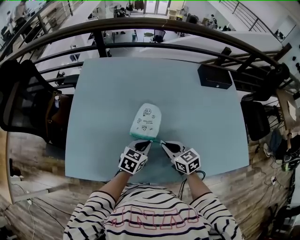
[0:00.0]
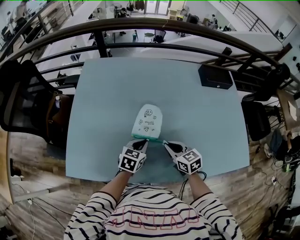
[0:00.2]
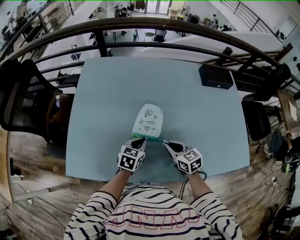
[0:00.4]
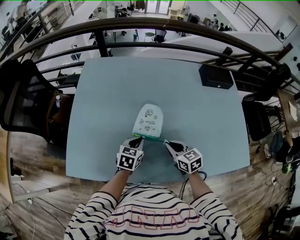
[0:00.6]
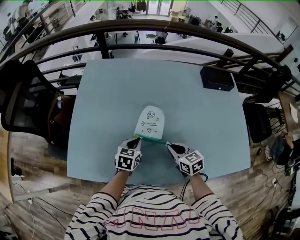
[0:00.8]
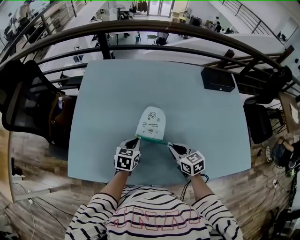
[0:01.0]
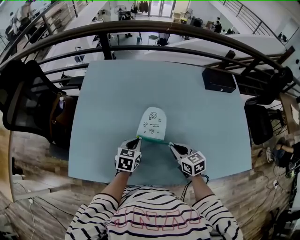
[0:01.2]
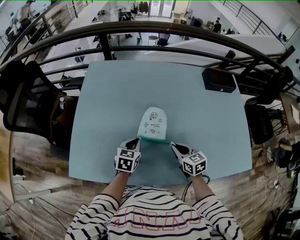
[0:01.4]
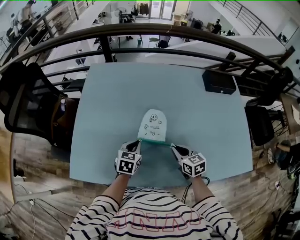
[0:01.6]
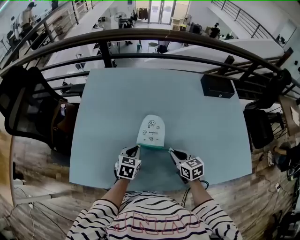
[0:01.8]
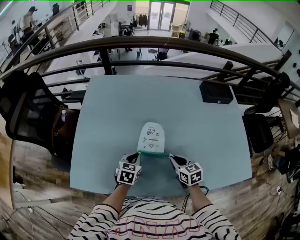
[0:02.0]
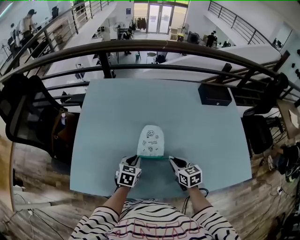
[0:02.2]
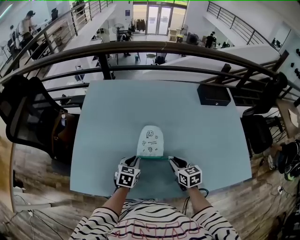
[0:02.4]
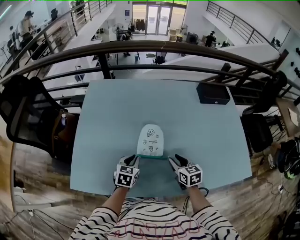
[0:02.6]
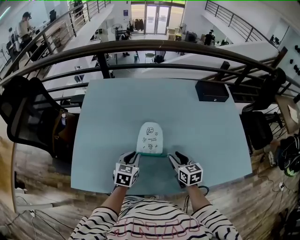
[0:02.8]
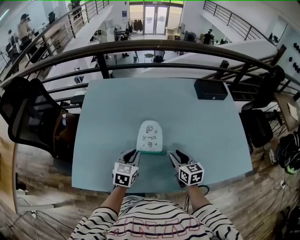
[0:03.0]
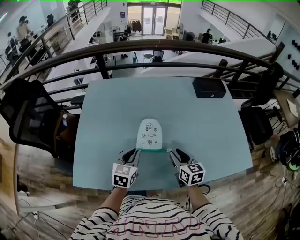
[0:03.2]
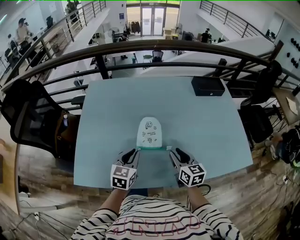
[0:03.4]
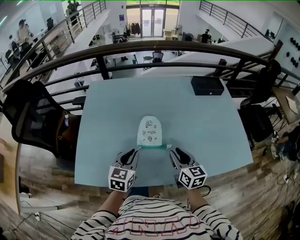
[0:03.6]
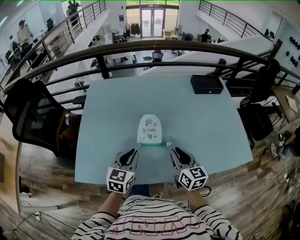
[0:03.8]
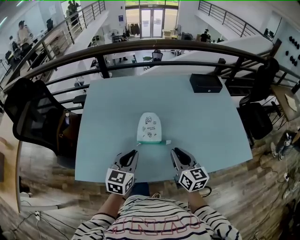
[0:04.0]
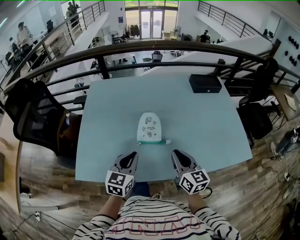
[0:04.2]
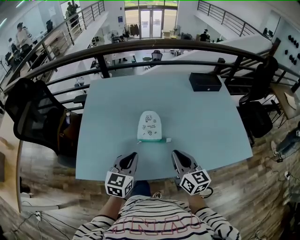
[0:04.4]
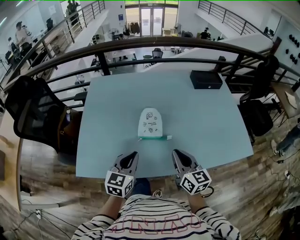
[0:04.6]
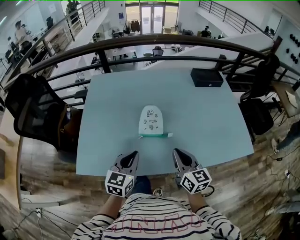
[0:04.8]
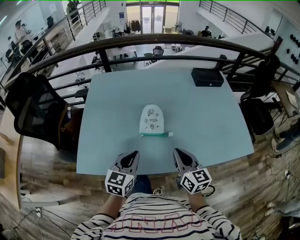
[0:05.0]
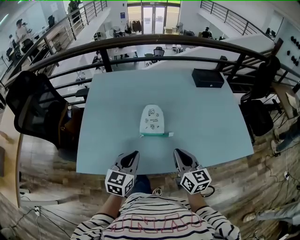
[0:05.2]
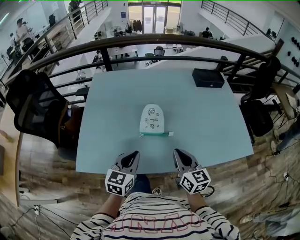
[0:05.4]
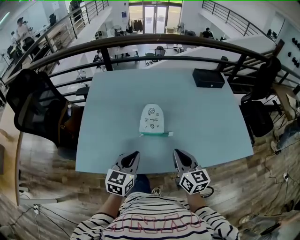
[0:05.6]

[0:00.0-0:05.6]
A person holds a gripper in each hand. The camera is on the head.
0:00.0 to 0:01.4: The left gripper heads to the left, covering approximately 10 cm.
0:01.4 to 0:02.8: The right gripper opens its fingers.
0:02.8 to 0:04.2: Both grippers move upward and backward, some 15 cm. The right gripper rotates some 20 degrees, and closes.
0:04.2 to 0:05.6: The grippers make only small movements.

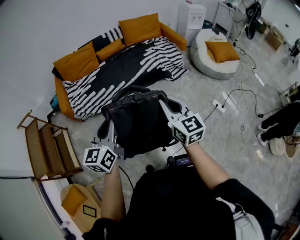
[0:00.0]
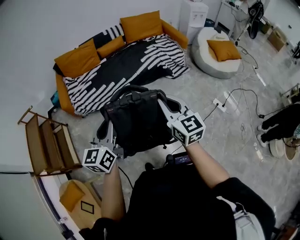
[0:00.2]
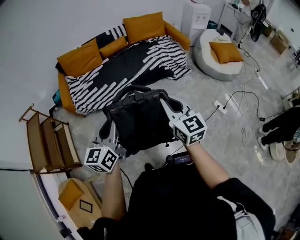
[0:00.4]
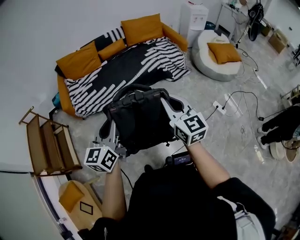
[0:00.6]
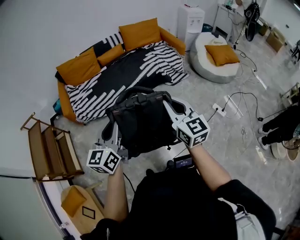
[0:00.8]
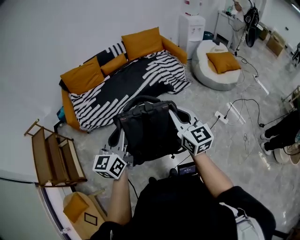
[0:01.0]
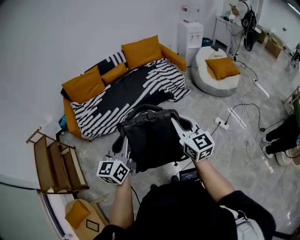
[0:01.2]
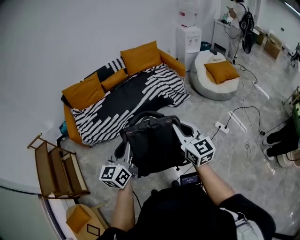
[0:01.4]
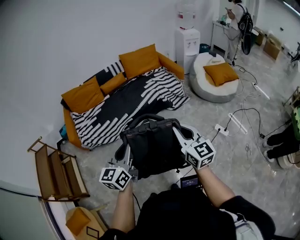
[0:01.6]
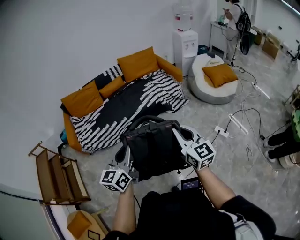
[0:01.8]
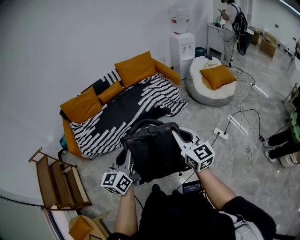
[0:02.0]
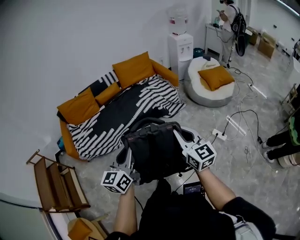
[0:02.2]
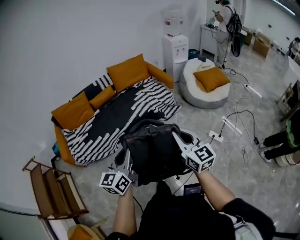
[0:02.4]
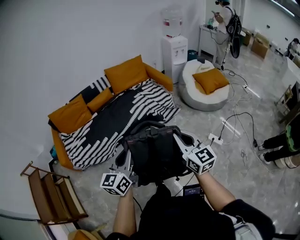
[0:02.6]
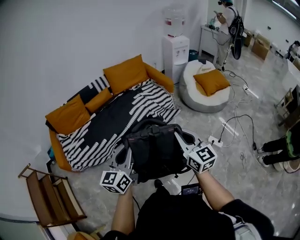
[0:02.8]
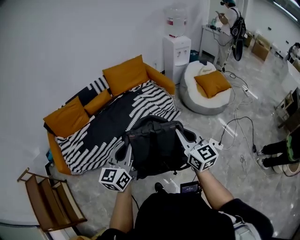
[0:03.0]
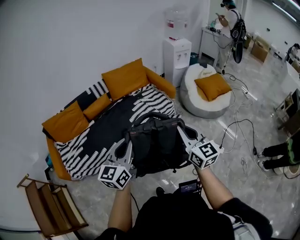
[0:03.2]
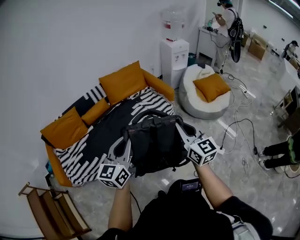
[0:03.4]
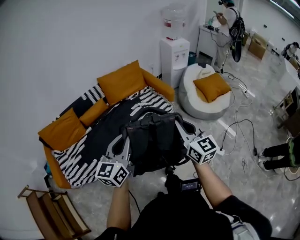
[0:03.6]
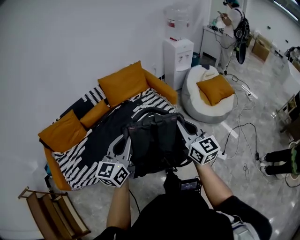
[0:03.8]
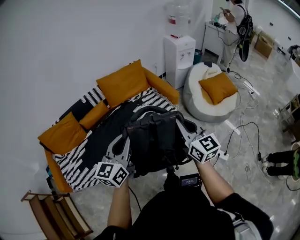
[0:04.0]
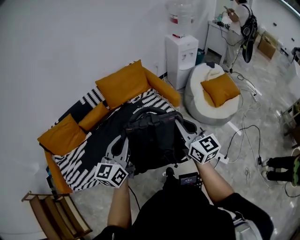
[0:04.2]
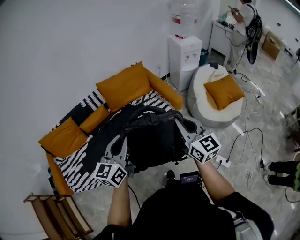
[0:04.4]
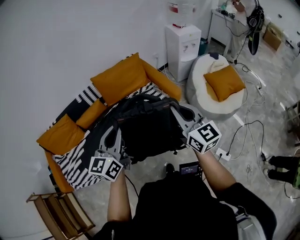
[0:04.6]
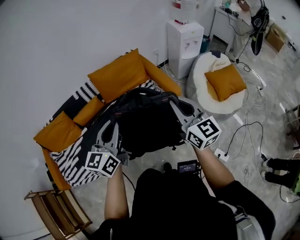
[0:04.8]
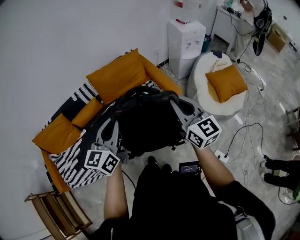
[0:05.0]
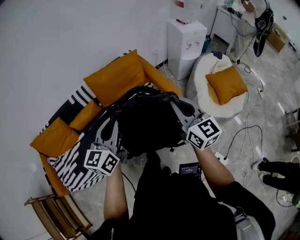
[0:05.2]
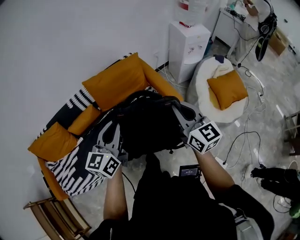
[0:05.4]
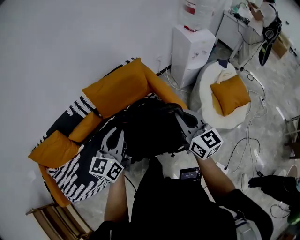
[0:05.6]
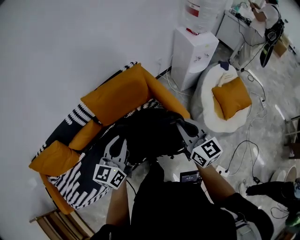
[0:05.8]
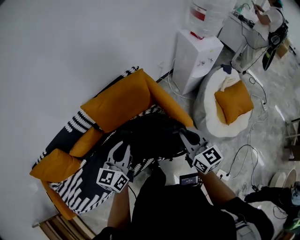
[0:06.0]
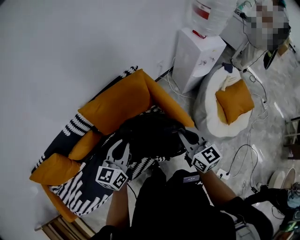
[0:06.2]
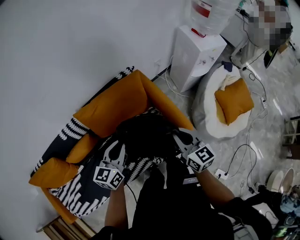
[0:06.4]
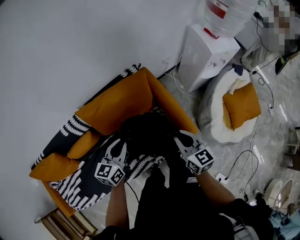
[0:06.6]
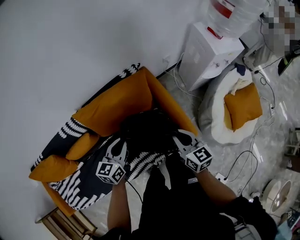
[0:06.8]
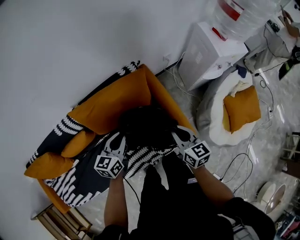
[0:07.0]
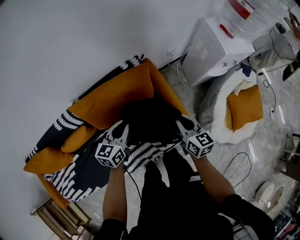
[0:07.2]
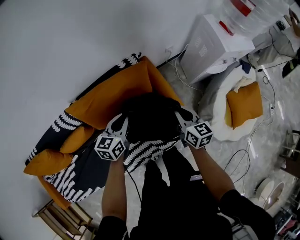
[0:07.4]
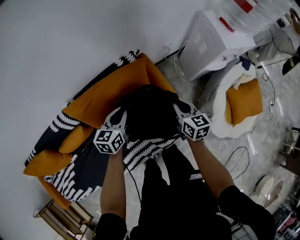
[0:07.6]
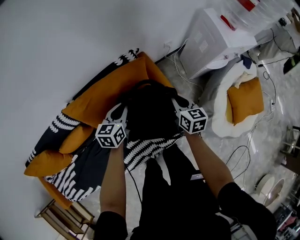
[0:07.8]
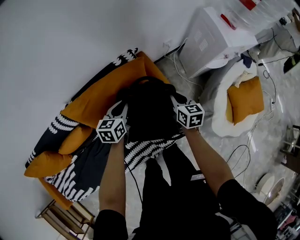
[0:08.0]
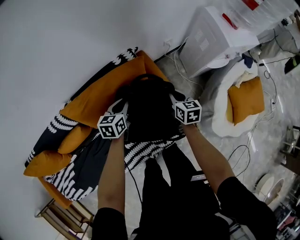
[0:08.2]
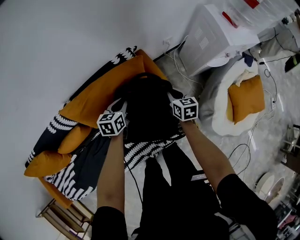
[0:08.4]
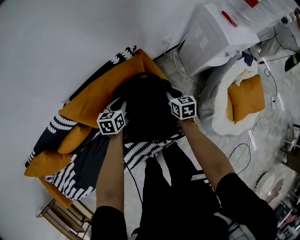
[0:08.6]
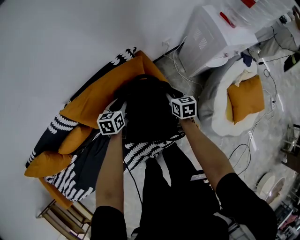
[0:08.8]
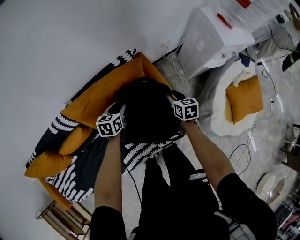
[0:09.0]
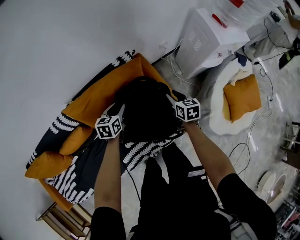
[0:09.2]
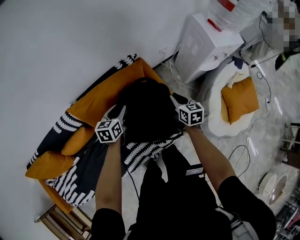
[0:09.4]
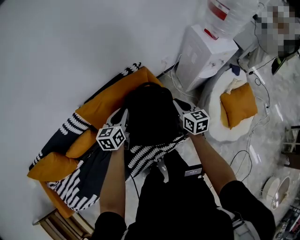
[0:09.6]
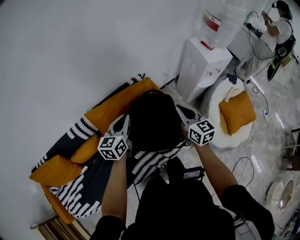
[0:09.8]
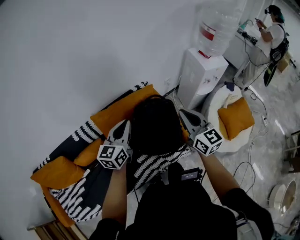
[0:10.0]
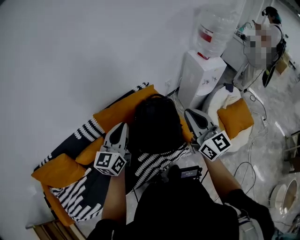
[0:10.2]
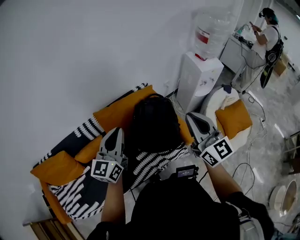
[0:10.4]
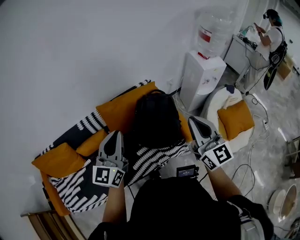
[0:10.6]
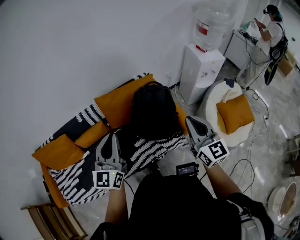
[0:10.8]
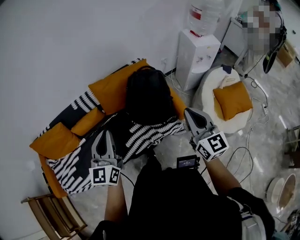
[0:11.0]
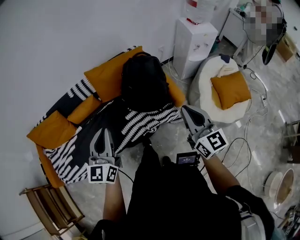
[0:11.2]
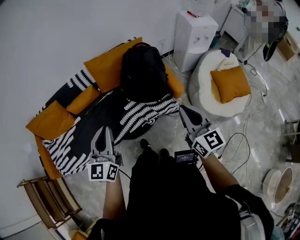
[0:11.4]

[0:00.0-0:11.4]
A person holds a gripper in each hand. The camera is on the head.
0:00.0 to 0:01.4: Both grippers move to the right, some 10 cm.
0:01.4 to 0:02.8: The two grippers go about 20 cm forward and to the right.
0:02.8 to 0:04.2: Both grippers travel together forward, approximately 35 cm.
0:04.2 to 0:05.6: The grippers both shift forward by approximately 30 cm.
0:05.6 to 0:07.2: The two grippers go roughly 35 cm forward and downward. The right gripper turns by some 20 degrees.
0:07.2 to 0:08.6: The grippers both shift downward and forward by about 20 cm.
0:08.6 to 0:10.0: Both grippers travel together upward and backward, roughly 40 cm. The right gripper tilts its fingers roughly 40 degrees upward, and opens and closes again, while the left gripper angles its fingers upward, by roughly 30 degrees.
0:10.0 to 0:11.4: Both grippers move backward, roughly 35 cm. The left gripper changes its angle by about 20 degrees.

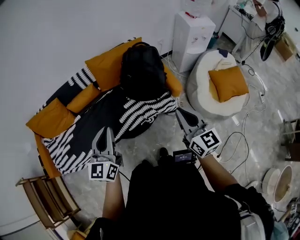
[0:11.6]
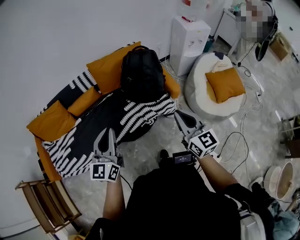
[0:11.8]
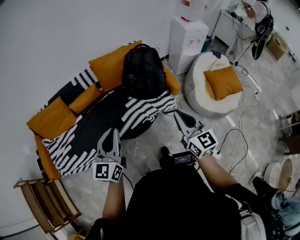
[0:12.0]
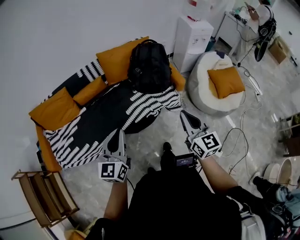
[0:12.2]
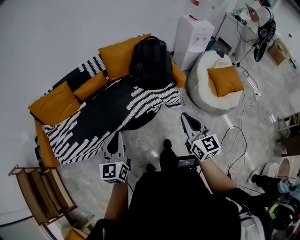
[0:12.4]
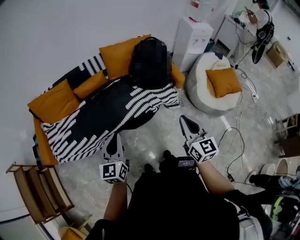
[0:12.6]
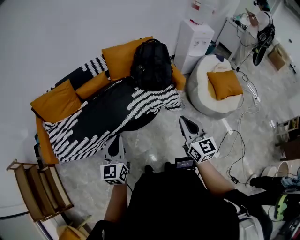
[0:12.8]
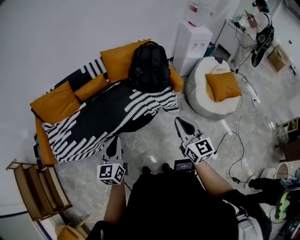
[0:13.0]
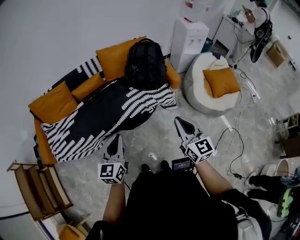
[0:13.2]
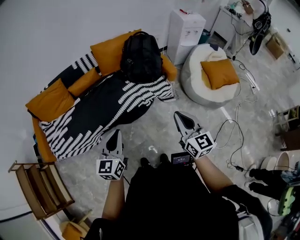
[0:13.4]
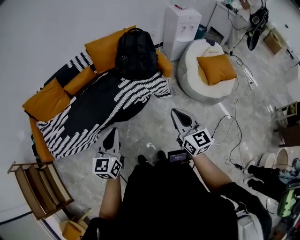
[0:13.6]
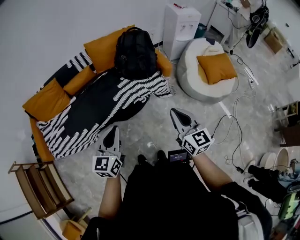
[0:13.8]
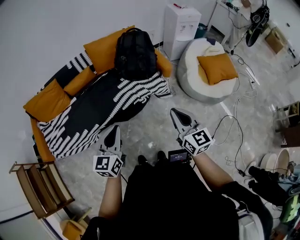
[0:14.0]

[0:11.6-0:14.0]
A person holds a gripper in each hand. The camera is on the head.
0:11.6 to 0:12.8: The grippers both shift backward and to the left by approximately 20 cm.
0:12.8 to 0:14.0: The left gripper shifts roughly 10 cm to the right, while the right gripper is displaced to the right by some 10 cm.

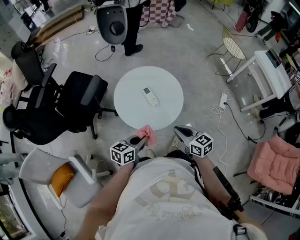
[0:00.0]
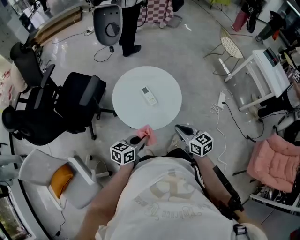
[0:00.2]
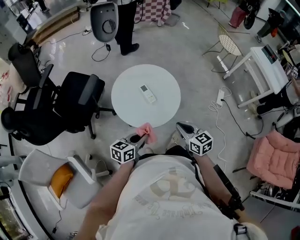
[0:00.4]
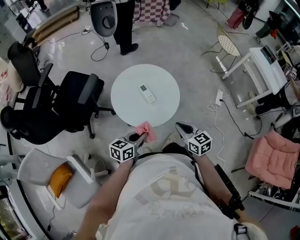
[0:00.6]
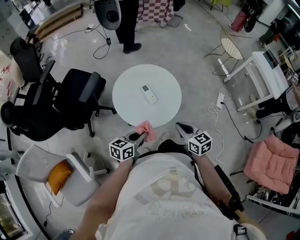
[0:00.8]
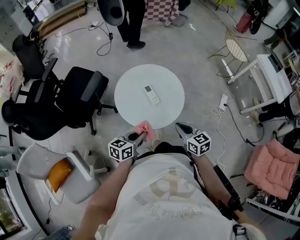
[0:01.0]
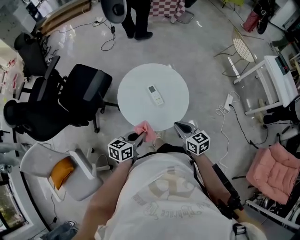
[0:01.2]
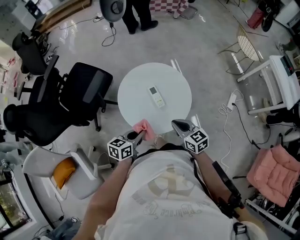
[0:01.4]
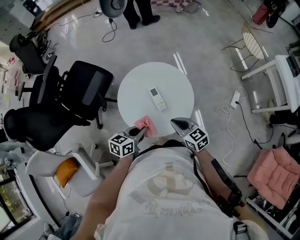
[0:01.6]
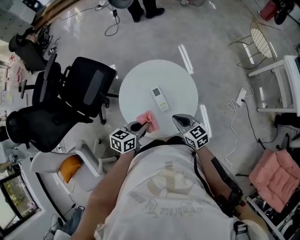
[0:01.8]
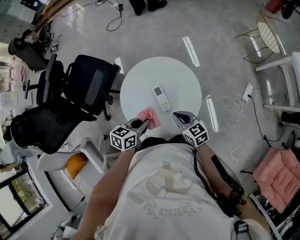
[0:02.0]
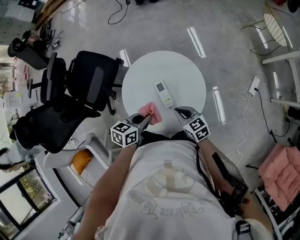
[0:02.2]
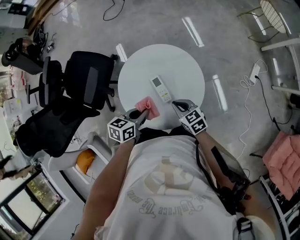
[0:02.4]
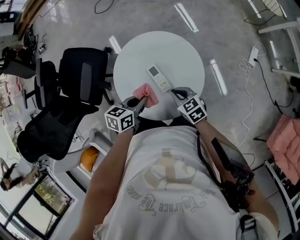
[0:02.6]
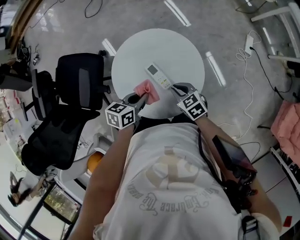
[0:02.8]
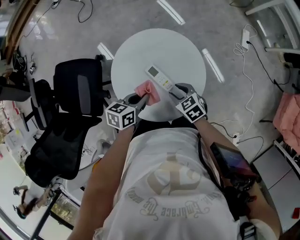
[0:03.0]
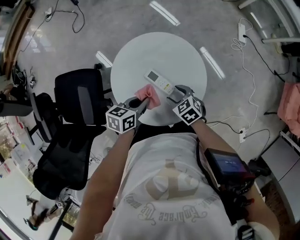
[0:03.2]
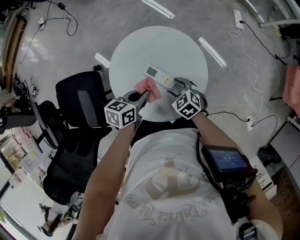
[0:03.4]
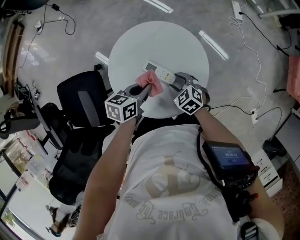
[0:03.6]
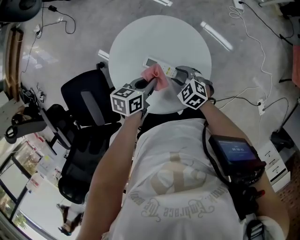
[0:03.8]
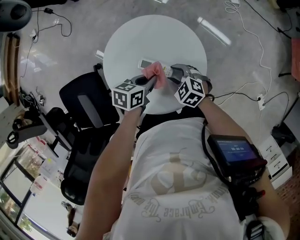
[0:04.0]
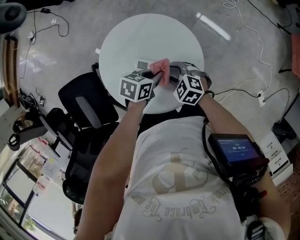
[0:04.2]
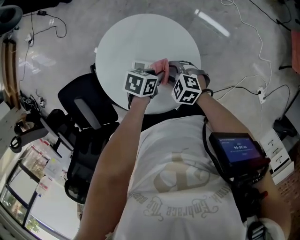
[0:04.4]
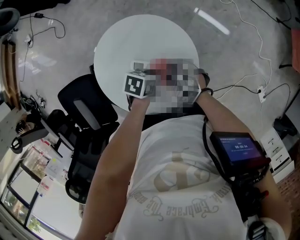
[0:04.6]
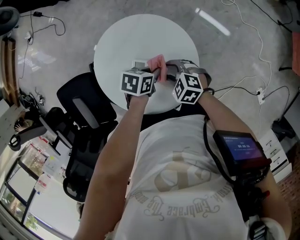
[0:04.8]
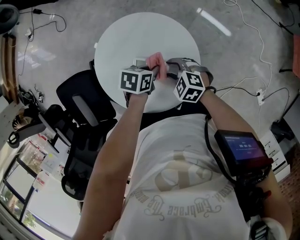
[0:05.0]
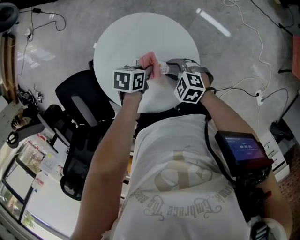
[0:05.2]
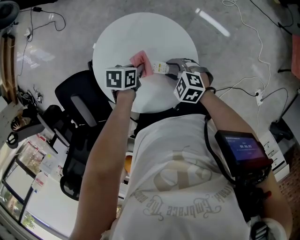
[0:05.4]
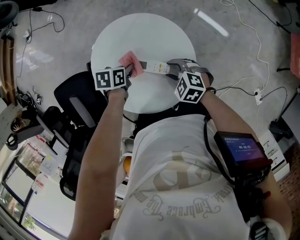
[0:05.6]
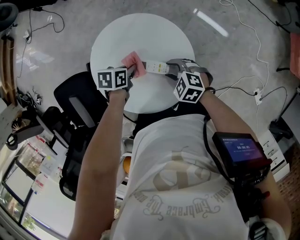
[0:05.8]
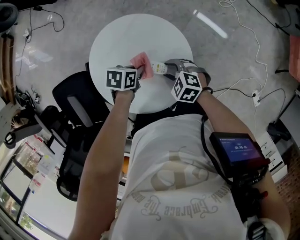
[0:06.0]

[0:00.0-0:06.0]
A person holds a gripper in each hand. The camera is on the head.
0:00.0 to 0:01.6: The grippers both shift forward by approximately 10 cm.
0:01.6 to 0:03.0: The right gripper moves downward and forward, some 15 cm, swivels roughly 30 degrees, and opens its fingers, while the left gripper moves forward and downward, some 15 cm, and swivels some 20 degrees.
0:03.0 to 0:04.4: The left gripper ends up some 15 cm from where it was, and rotates approximately 40 degrees. Meanwhile the right gripper shifts by some 5 cm.
